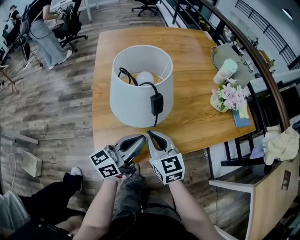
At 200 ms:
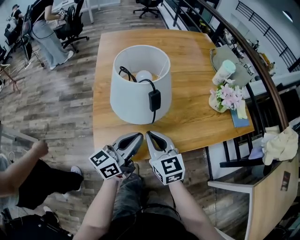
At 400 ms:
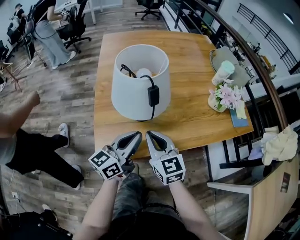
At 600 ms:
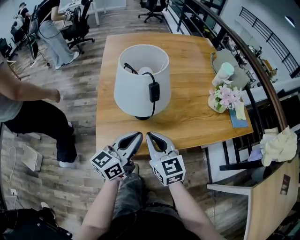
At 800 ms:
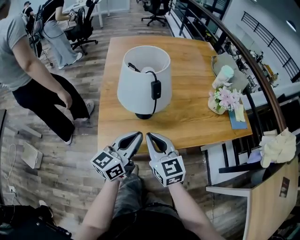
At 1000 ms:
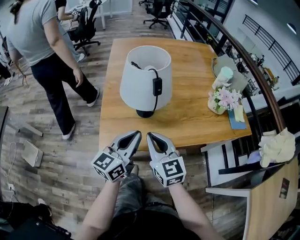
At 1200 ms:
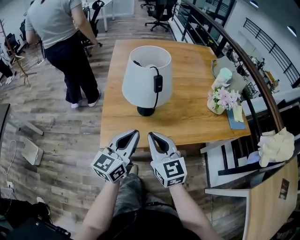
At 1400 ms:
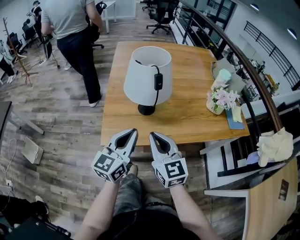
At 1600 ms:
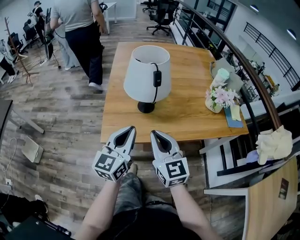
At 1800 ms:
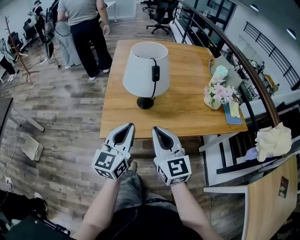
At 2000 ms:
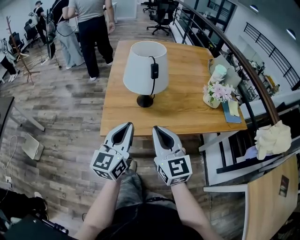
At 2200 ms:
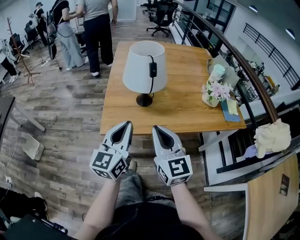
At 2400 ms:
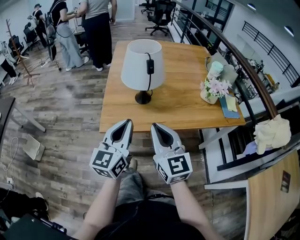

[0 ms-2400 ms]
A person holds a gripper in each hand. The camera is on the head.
0 ms to 1200 ms: The left gripper goes roughly 5 cm backward, and swivels about 30 degrees, while the right gripper travels backward and upward by approximately 10 cm.
1200 ms to 2400 ms: The right gripper moves backward and upward, some 10 cm, while the left gripper heads backward, covering approximately 5 cm.

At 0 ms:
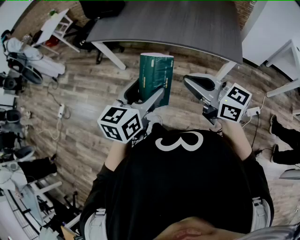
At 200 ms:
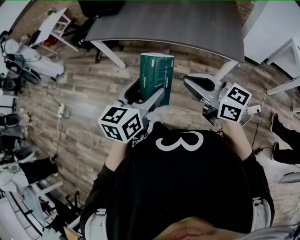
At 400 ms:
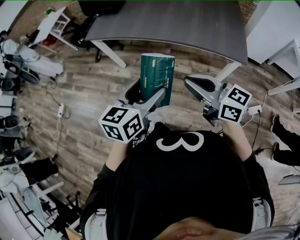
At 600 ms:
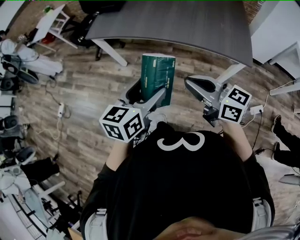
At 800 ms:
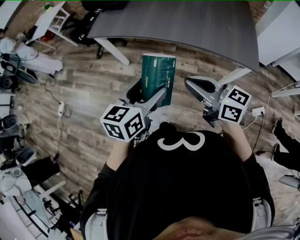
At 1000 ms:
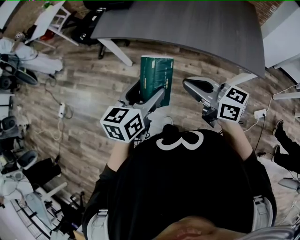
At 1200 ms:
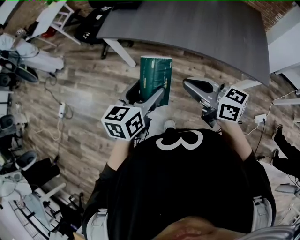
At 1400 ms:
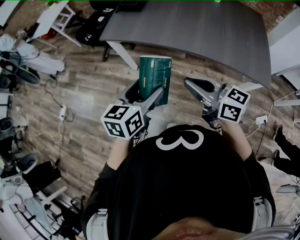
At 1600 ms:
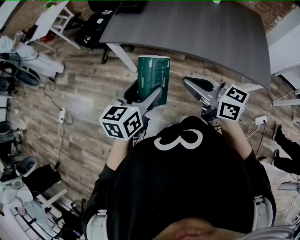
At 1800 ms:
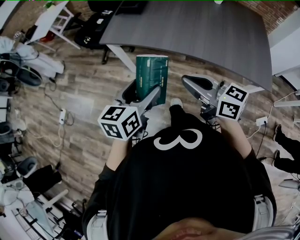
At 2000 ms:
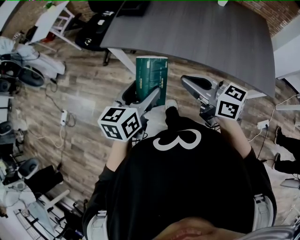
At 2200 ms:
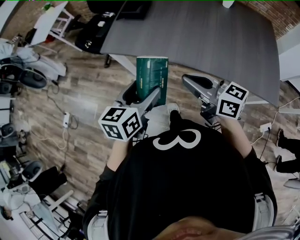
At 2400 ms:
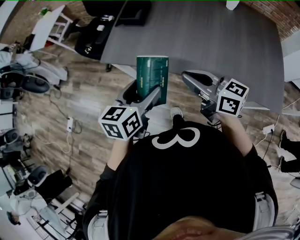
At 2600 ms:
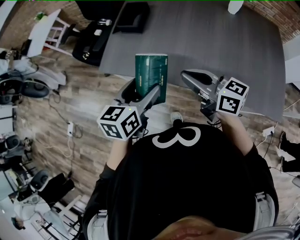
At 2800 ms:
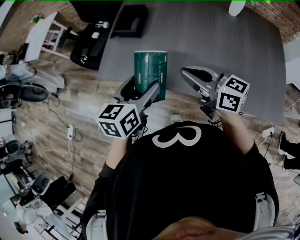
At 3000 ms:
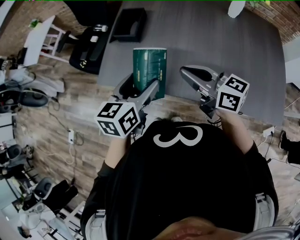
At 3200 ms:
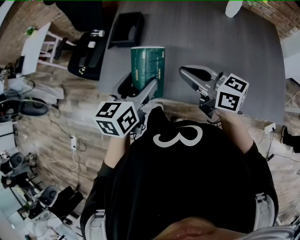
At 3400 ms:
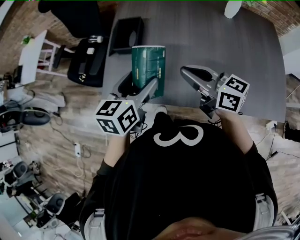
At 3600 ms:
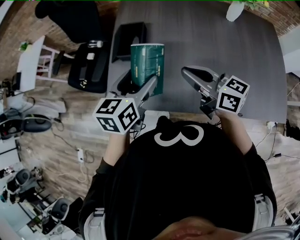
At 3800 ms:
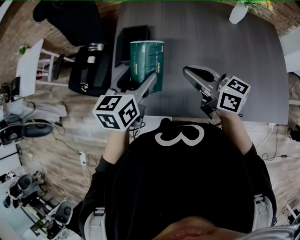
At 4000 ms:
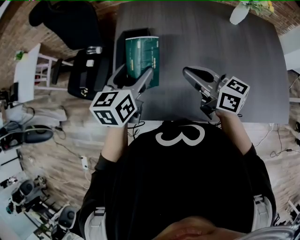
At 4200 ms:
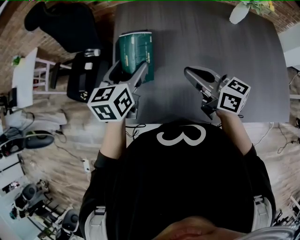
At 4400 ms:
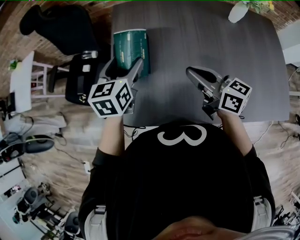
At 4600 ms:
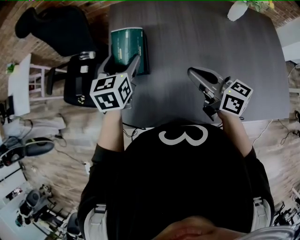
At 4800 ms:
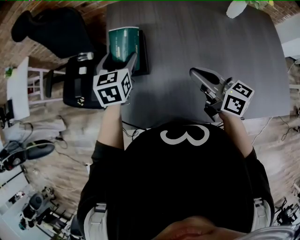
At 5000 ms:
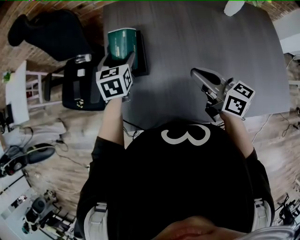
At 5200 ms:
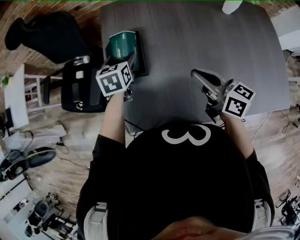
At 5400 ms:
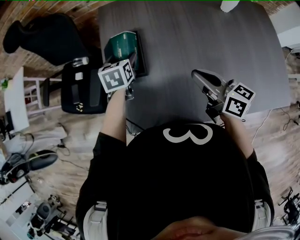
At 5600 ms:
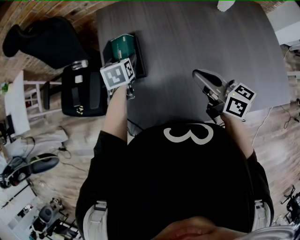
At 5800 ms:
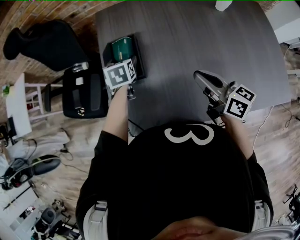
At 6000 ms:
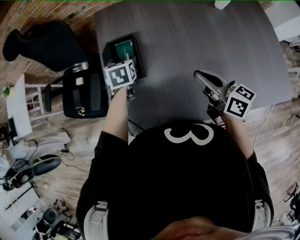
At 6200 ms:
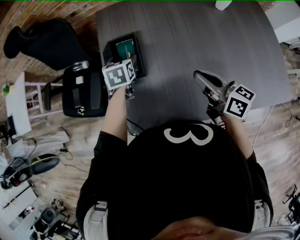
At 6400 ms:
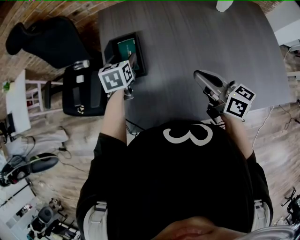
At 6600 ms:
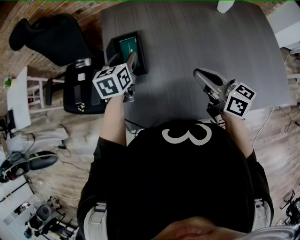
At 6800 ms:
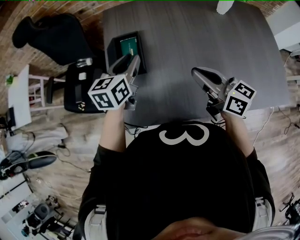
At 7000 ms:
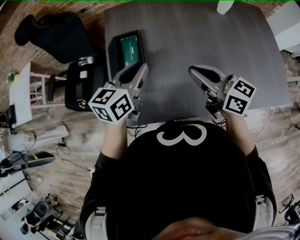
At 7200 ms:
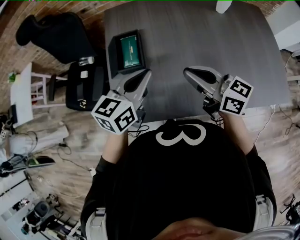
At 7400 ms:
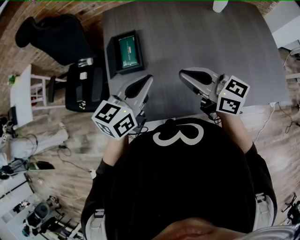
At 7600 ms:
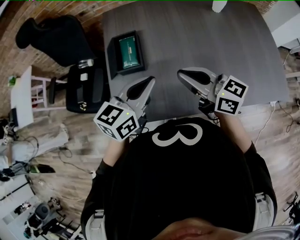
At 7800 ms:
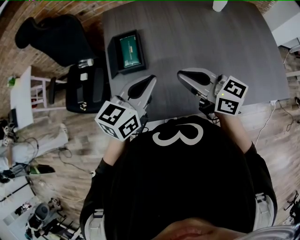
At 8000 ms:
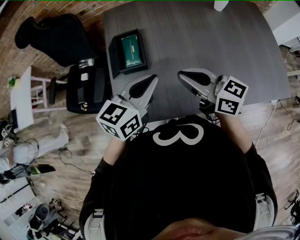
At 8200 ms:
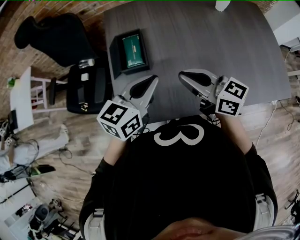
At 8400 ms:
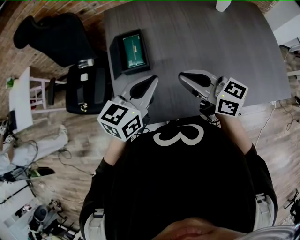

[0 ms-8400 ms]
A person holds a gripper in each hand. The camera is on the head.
0 ms to 1400 ms: Both grippers move forward and to the left, roughly 25 cm.
1400 ms to 2800 ms: Both grippers move forward, roughly 30 cm.
2800 ms to 4200 ms: Both grippers travel together forward, roughly 25 cm.
4200 ms to 5600 ms: The left gripper travels downward and forward by some 20 cm, and changes its angle by about 20 degrees. Meanwhile the right gripper shifts by approximately 5 cm.
5600 ms to 7000 ms: The right gripper shifts by about 5 cm, while the left gripper is displaced backward and upward by roughly 20 cm, rotates roughly 40 degrees, and closes.
7000 ms to 8400 ms: The left gripper shifts roughly 5 cm backward, while the right gripper travels to the left by about 5 cm.

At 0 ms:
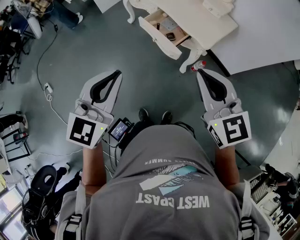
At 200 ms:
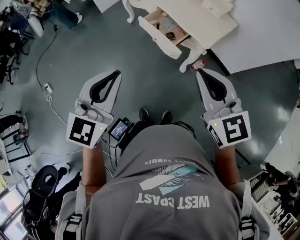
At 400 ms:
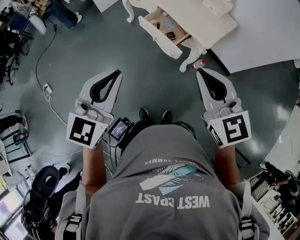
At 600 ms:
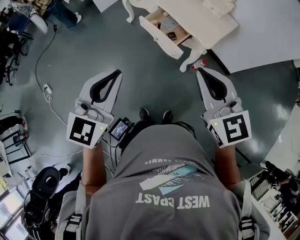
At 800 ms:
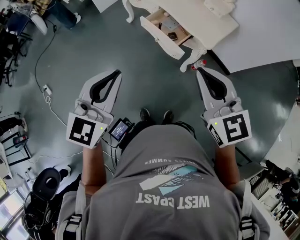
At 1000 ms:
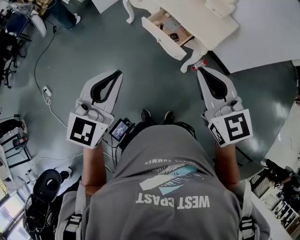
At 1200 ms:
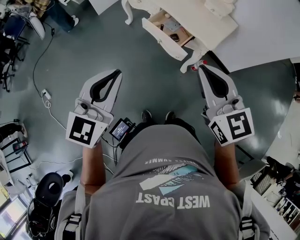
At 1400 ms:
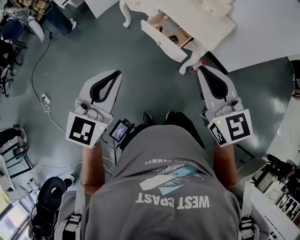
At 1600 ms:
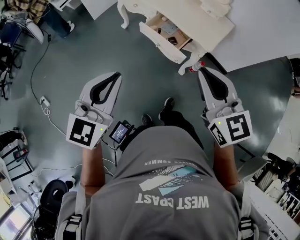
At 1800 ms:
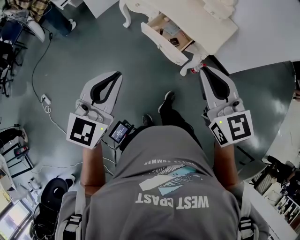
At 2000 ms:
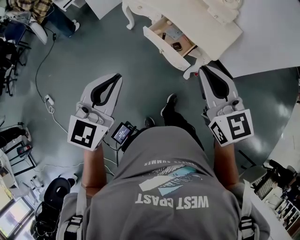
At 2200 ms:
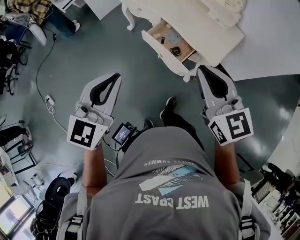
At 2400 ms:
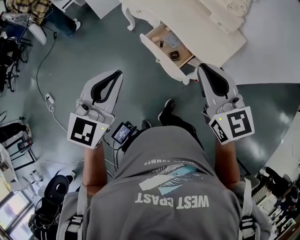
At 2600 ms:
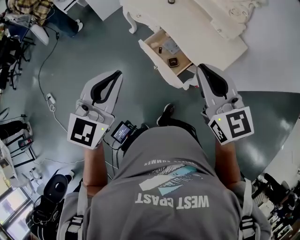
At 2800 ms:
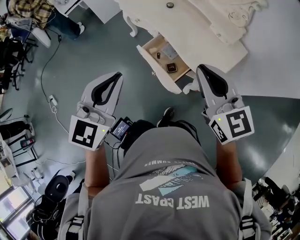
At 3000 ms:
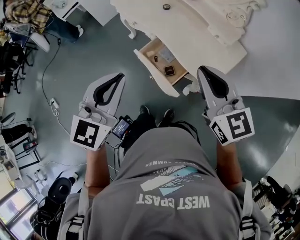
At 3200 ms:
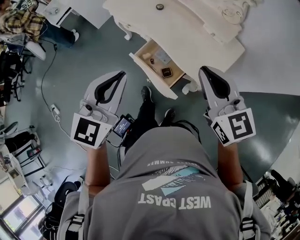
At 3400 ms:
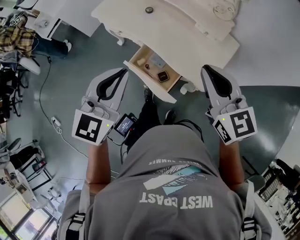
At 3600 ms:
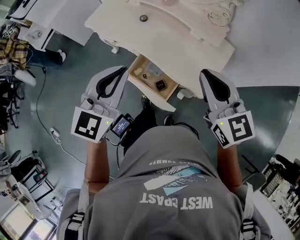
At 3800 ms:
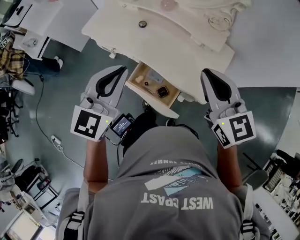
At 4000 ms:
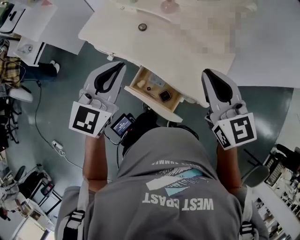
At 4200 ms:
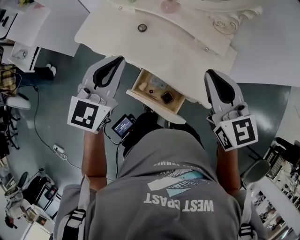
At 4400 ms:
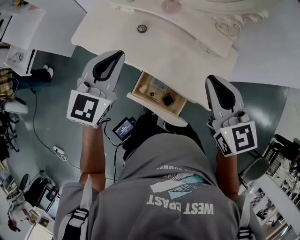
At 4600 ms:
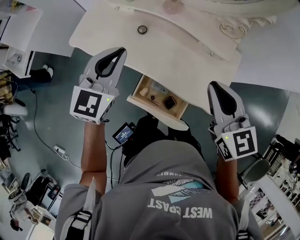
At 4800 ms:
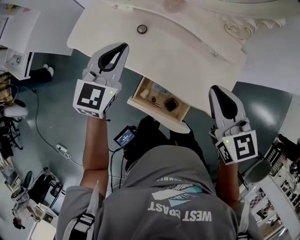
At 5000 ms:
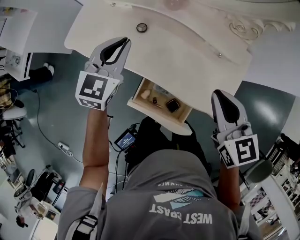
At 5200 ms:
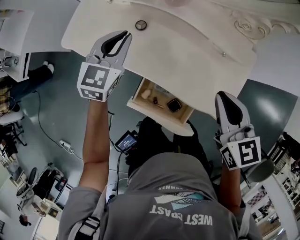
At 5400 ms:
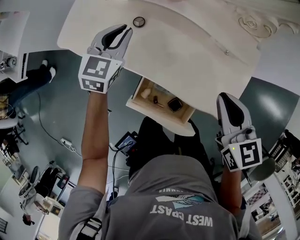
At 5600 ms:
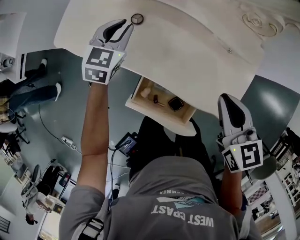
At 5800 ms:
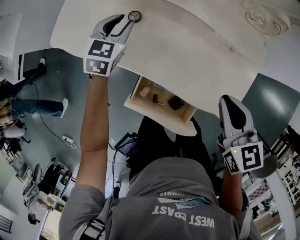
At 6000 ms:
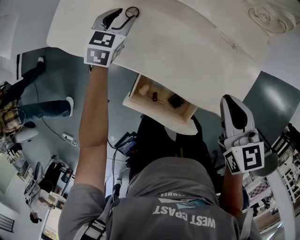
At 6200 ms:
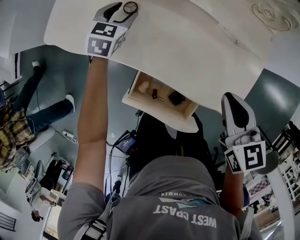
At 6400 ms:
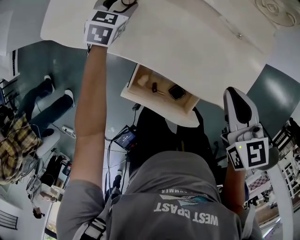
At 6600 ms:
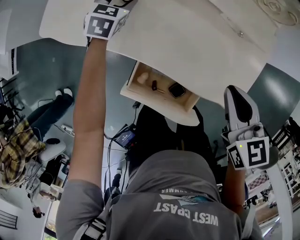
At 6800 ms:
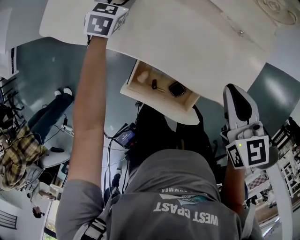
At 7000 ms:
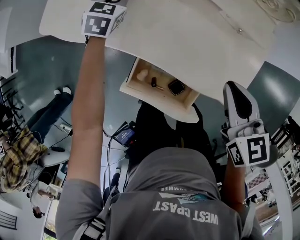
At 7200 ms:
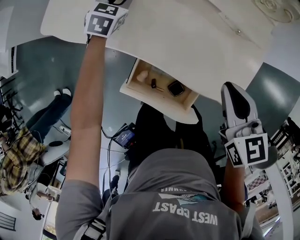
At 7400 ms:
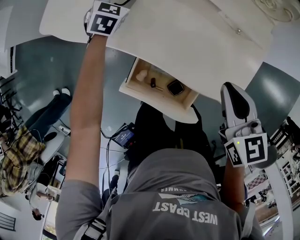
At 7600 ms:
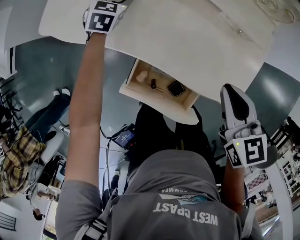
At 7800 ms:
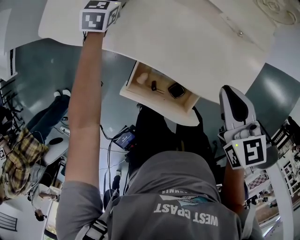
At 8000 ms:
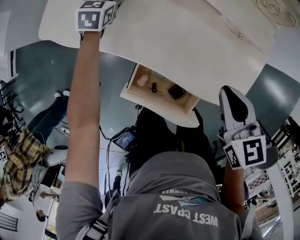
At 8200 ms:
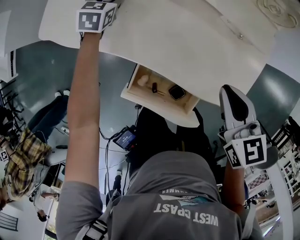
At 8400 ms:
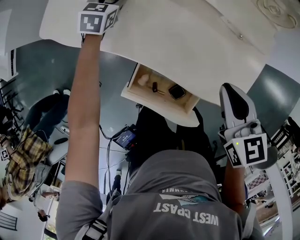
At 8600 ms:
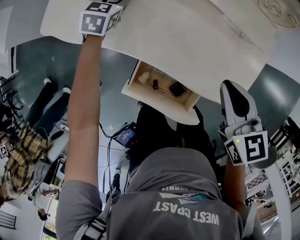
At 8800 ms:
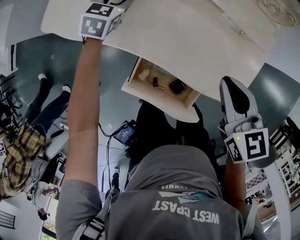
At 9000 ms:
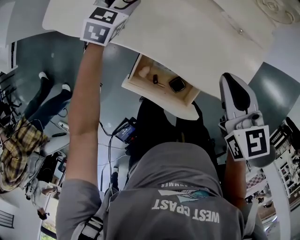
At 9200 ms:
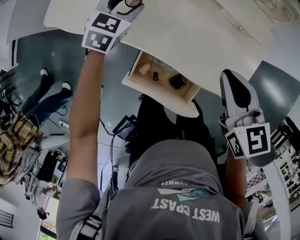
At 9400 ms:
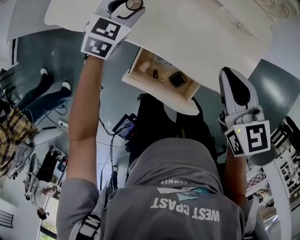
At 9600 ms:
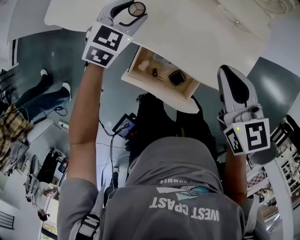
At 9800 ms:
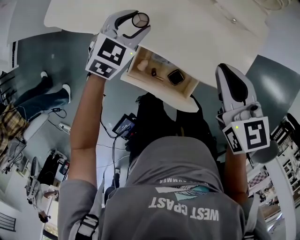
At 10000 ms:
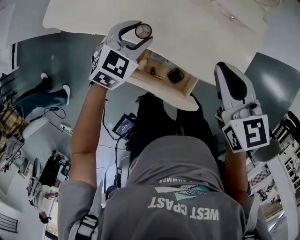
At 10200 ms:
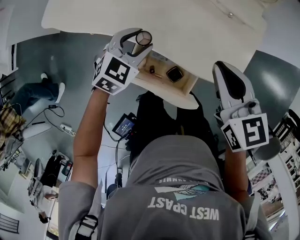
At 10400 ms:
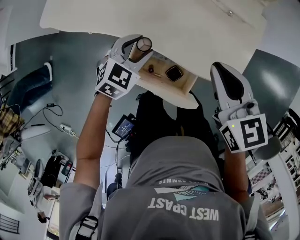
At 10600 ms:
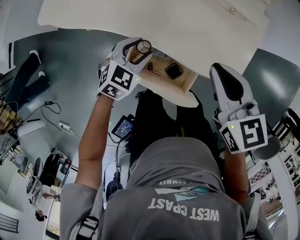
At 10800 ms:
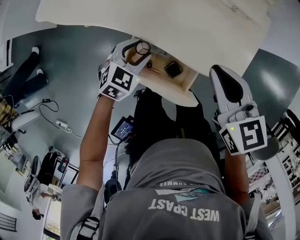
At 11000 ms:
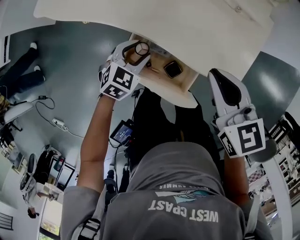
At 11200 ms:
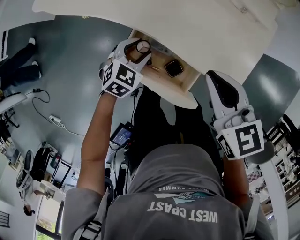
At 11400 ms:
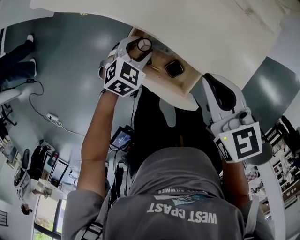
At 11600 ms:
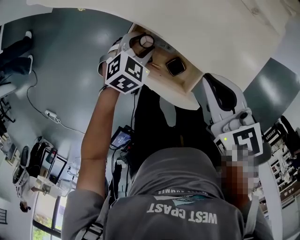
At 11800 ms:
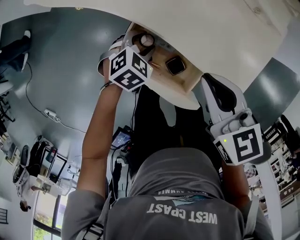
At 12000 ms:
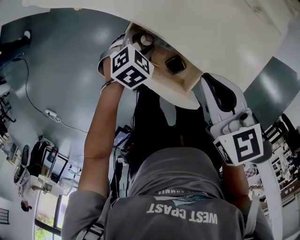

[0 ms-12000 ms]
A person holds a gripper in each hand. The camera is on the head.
0 ms to 1600 ms: The grippers both shift to the left by approximately 10 cm.
1600 ms to 3000 ms: Both grippers move forward and to the right, some 30 cm.
3000 ms to 4400 ms: The right gripper goes about 25 cm forward, and changes its angle by approximately 30 degrees. The left gripper moves forward, roughly 40 cm, and rotates some 20 degrees.
4400 ms to 6000 ms: The left gripper is displaced downward and forward by some 40 cm, turns by roughly 30 degrees, and opens up. Meanwhile the right gripper heads downward, covering some 20 cm, and changes its angle by some 20 degrees.
6000 ms to 7600 ms: The left gripper heads downward, covering about 5 cm, and opens its fingers.
7600 ms to 9000 ms: The left gripper shifts about 10 cm backward and upward.
9000 ms to 10400 ms: The left gripper travels backward and to the right by some 20 cm.
10400 ms to 12000 ms: The right gripper shifts approximately 20 cm downward and to the left, while the left gripper is displaced downward by about 20 cm, and swivels about 20 degrees.
